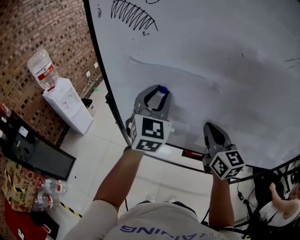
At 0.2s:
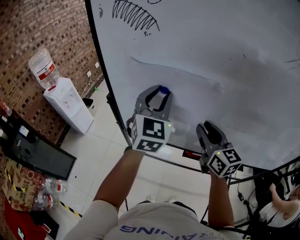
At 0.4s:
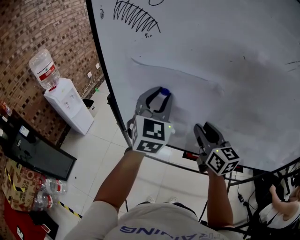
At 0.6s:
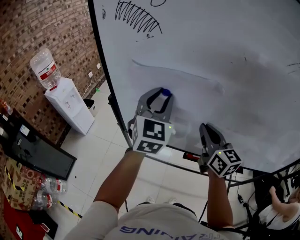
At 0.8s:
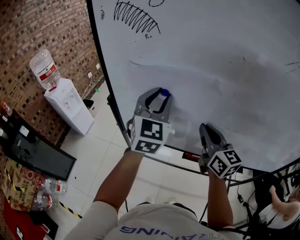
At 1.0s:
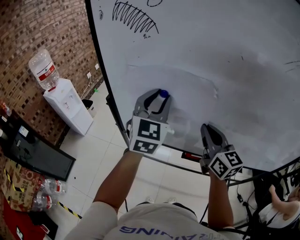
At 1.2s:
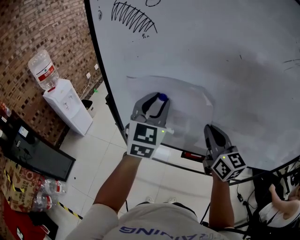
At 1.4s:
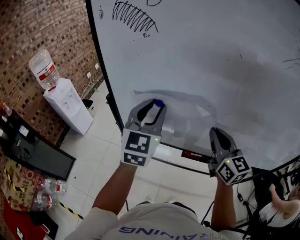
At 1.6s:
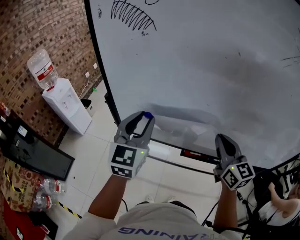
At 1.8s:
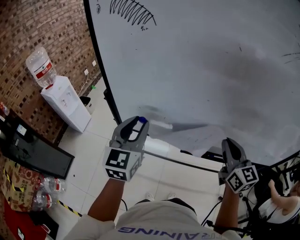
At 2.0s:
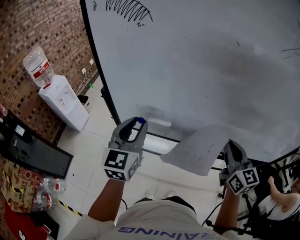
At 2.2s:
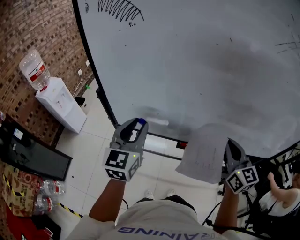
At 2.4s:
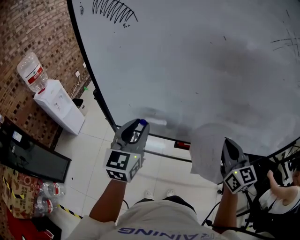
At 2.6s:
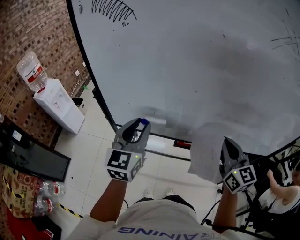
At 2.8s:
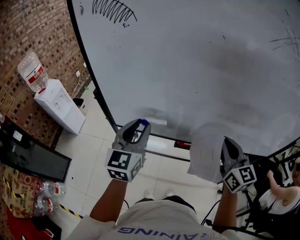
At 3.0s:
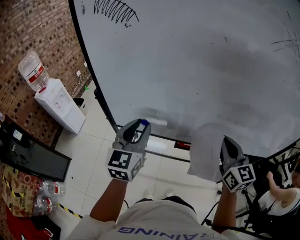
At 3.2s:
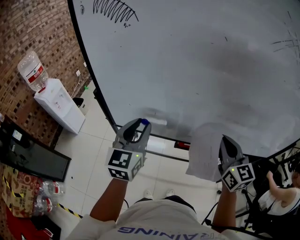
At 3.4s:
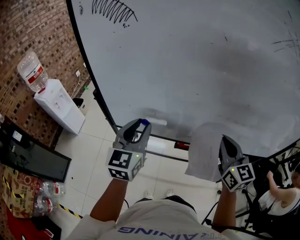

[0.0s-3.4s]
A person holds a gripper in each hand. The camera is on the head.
0.0s to 1.6s: The left gripper heads backward, covering some 10 cm, while the right gripper moves some 5 cm, and opens, then closes once more.
1.6s to 3.4s: The right gripper shifts by roughly 5 cm; the left gripper is displaced downward by roughly 5 cm.

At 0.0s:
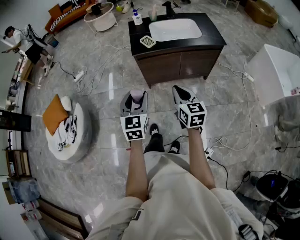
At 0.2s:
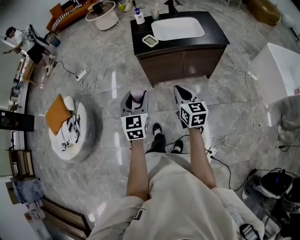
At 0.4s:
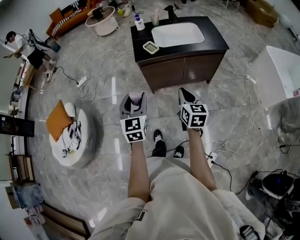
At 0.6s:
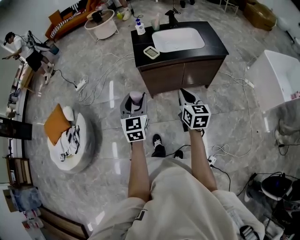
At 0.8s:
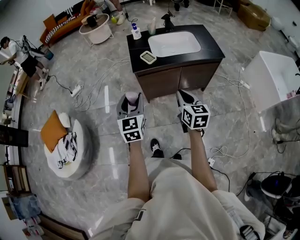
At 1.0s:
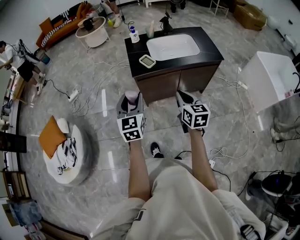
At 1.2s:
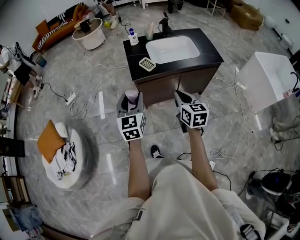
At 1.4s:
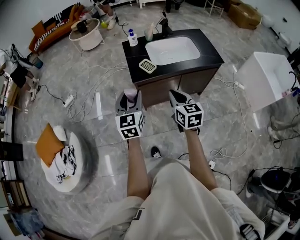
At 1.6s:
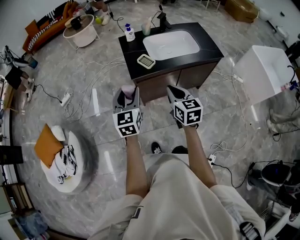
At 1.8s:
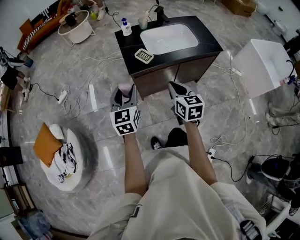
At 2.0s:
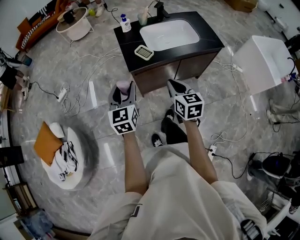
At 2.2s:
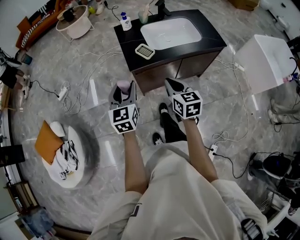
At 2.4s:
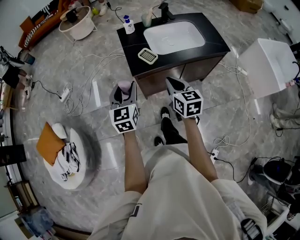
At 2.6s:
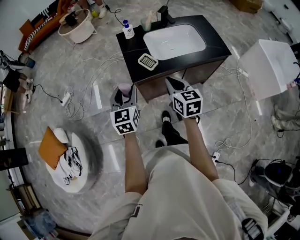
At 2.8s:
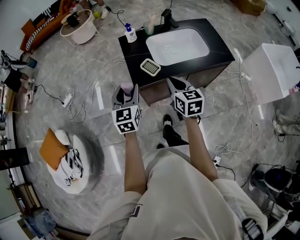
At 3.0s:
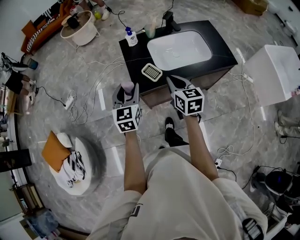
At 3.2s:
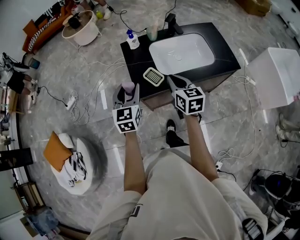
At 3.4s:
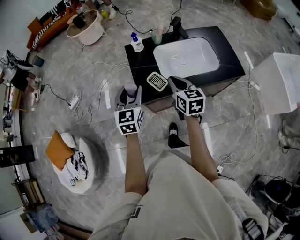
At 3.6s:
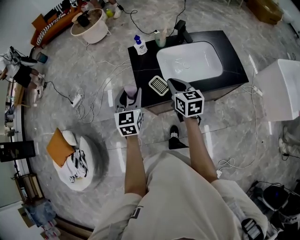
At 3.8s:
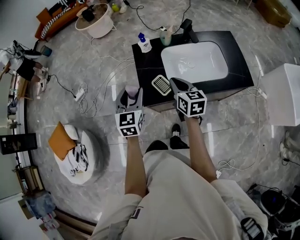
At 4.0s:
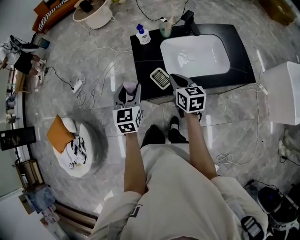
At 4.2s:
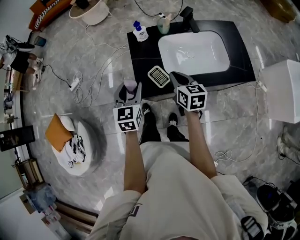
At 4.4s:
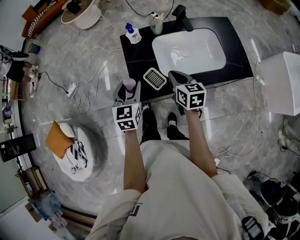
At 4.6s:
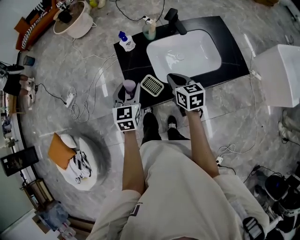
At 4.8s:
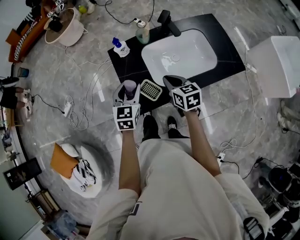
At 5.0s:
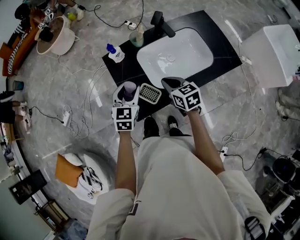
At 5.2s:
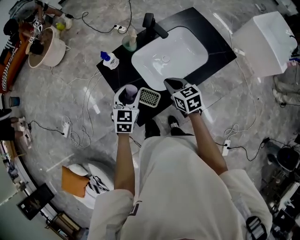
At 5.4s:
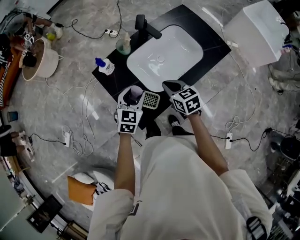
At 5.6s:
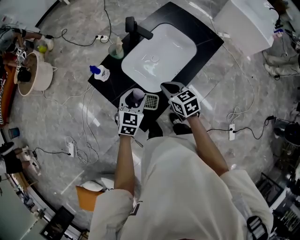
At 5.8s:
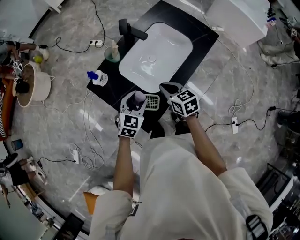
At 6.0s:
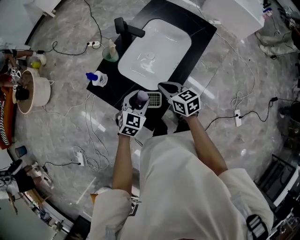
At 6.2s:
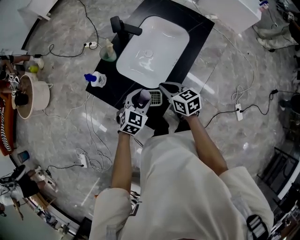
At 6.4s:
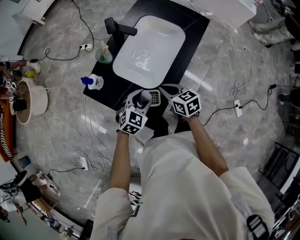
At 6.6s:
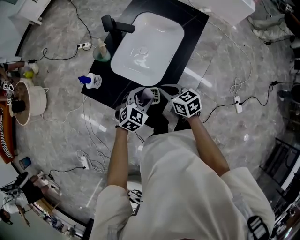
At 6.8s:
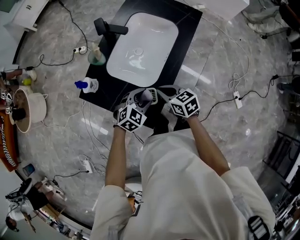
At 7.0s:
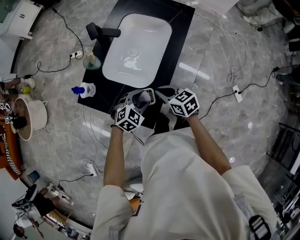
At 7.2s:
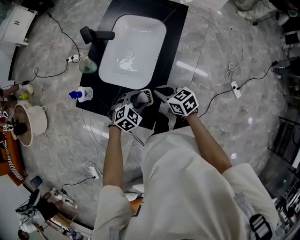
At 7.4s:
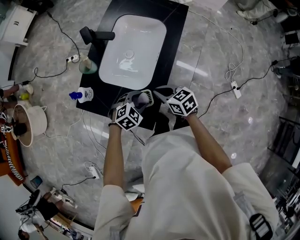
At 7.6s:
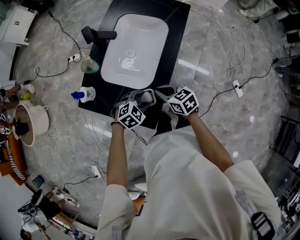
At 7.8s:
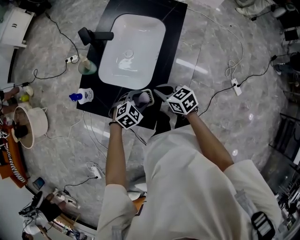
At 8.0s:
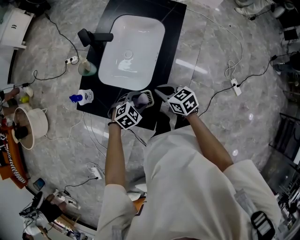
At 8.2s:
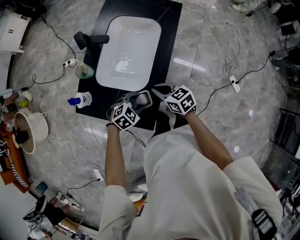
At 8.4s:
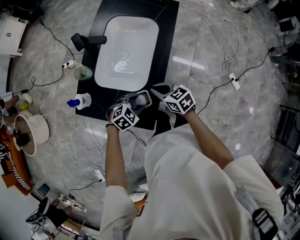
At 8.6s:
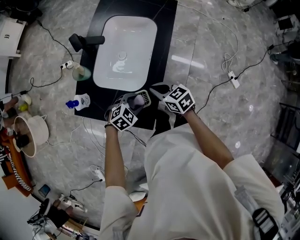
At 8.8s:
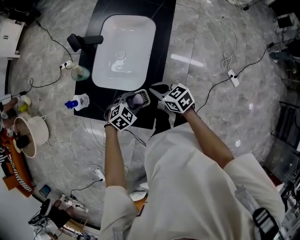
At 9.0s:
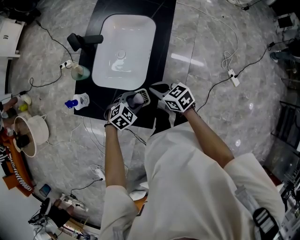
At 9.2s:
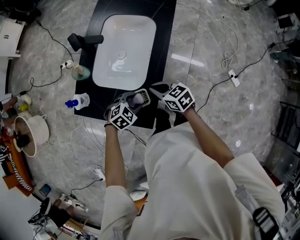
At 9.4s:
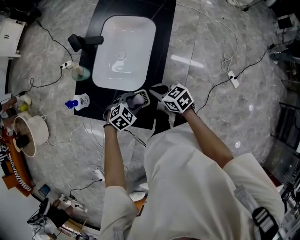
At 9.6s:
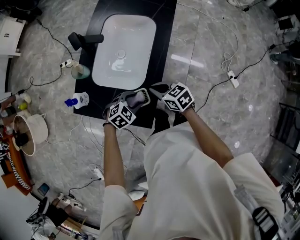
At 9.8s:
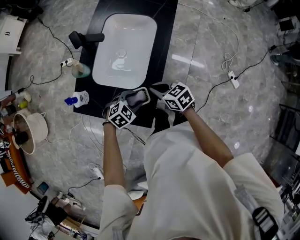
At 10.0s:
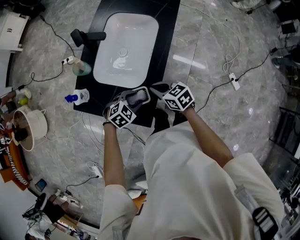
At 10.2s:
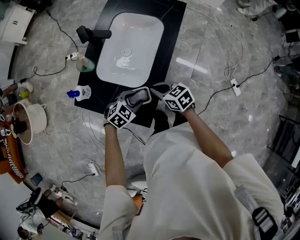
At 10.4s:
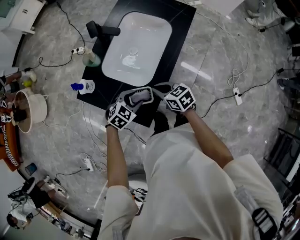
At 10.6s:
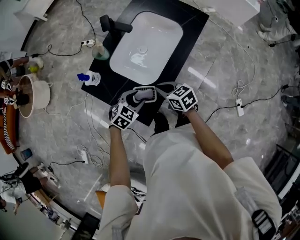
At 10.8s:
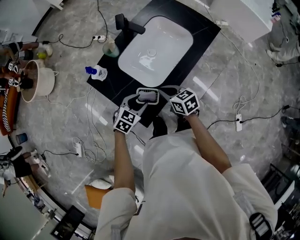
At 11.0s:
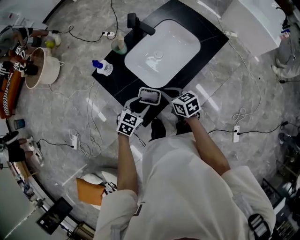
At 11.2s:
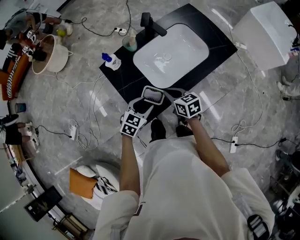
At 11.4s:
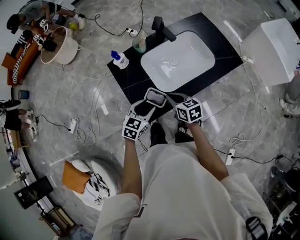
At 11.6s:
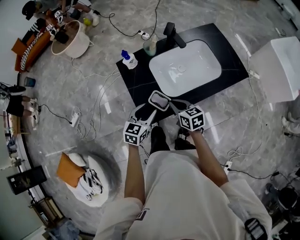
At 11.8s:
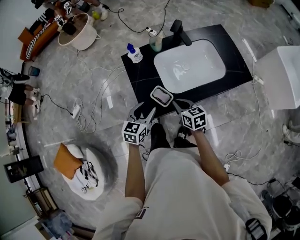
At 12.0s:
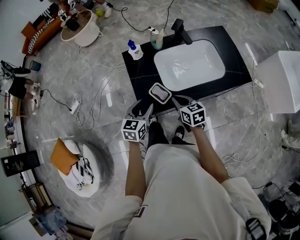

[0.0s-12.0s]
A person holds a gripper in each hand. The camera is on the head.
0.0s to 1.6s: The two grippers go approximately 20 cm forward.
1.6s to 3.0s: Both grippers move forward, approximately 15 cm.
3.0s to 4.4s: The left gripper moves forward, about 10 cm; the right gripper moves forward and downward, approximately 15 cm.
4.4s to 6.0s: The left gripper moves downward, about 10 cm, and turns by approximately 70 degrees. Meanwhile the right gripper moves downward, some 5 cm, and turns by approximately 30 degrees.
6.0s to 7.6s: The right gripper shifts by approximately 5 cm. The left gripper goes some 10 cm downward, and rotates about 40 degrees.
7.6s to 10.4s: The grippers move only a little.
10.4s to 12.0s: The left gripper shifts some 5 cm upward, and rotates some 90 degrees, while the right gripper changes its angle by some 30 degrees.

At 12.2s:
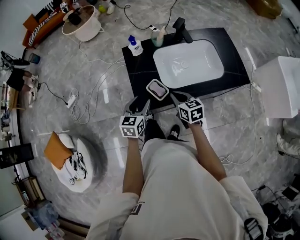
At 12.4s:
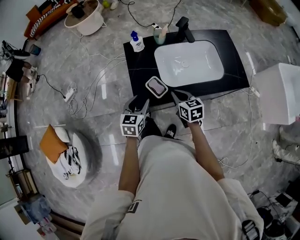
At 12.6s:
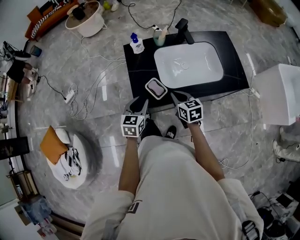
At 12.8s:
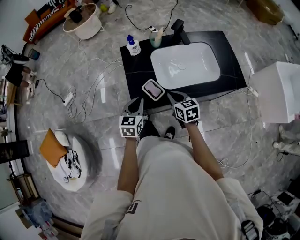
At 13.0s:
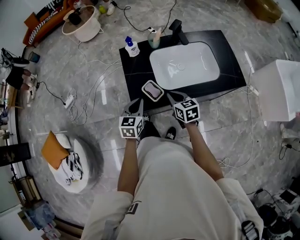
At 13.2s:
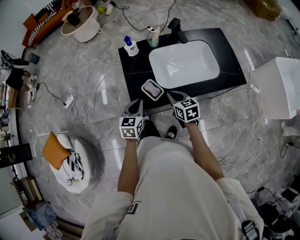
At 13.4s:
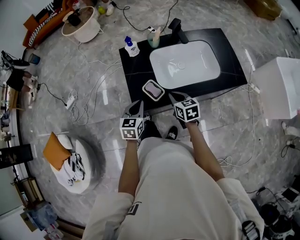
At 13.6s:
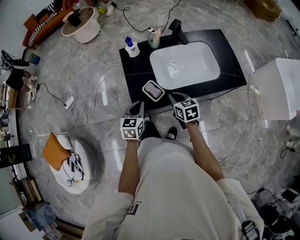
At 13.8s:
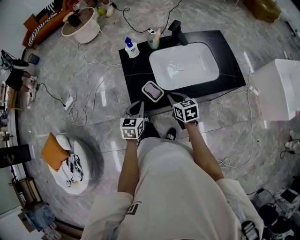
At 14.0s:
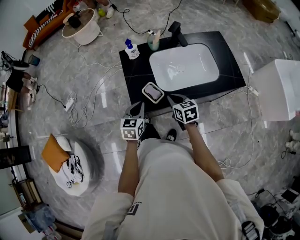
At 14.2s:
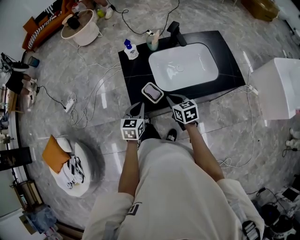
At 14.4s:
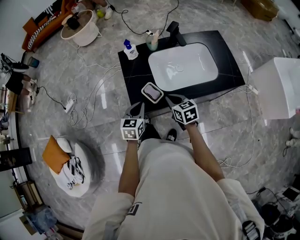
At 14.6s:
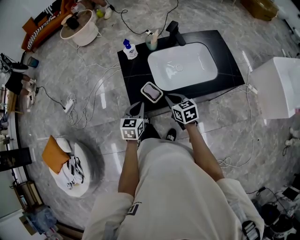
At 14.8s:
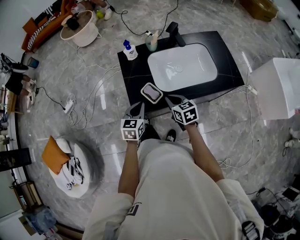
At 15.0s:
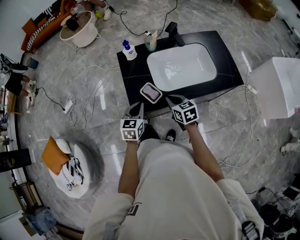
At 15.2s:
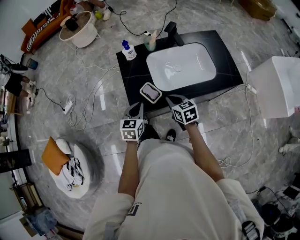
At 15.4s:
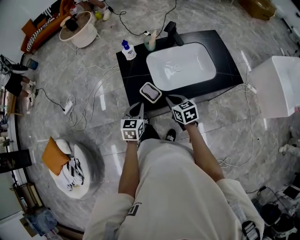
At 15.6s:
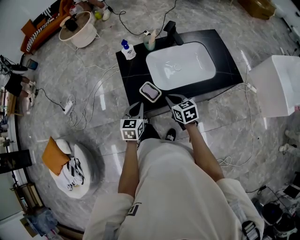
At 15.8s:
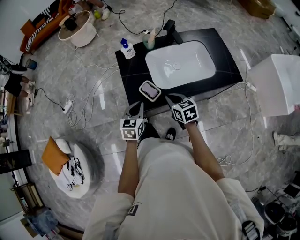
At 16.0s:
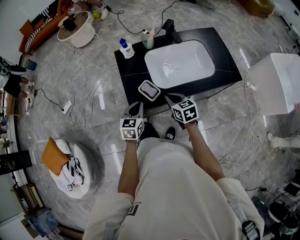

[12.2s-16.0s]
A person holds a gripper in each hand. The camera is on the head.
12.2s to 13.4s: The left gripper closes up.
13.4s to 14.8s: The grippers make only small movements.
14.8s to 16.0s: Both grippers stay about where they are.

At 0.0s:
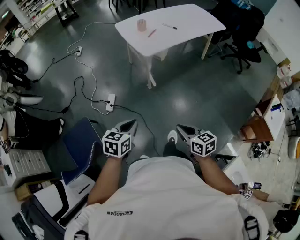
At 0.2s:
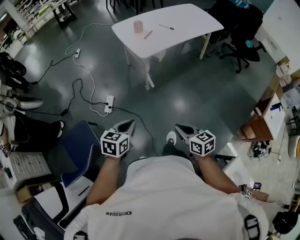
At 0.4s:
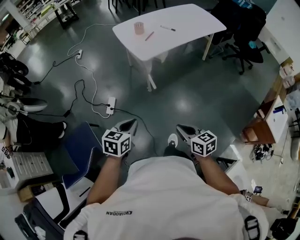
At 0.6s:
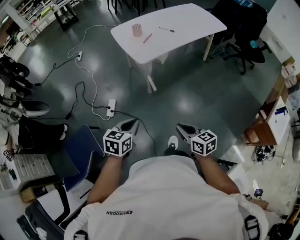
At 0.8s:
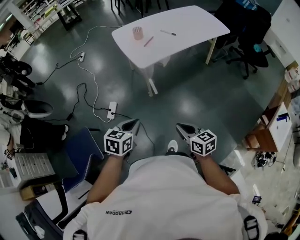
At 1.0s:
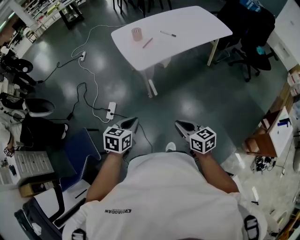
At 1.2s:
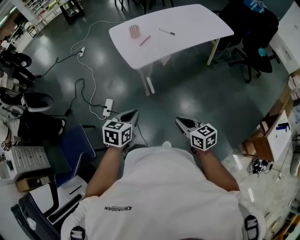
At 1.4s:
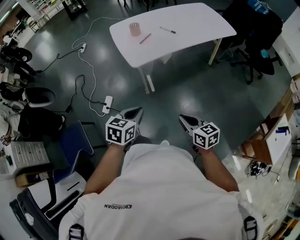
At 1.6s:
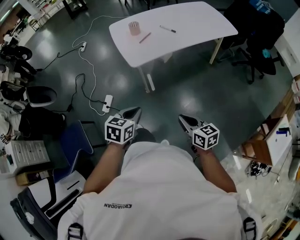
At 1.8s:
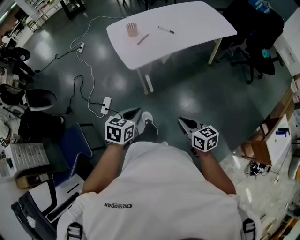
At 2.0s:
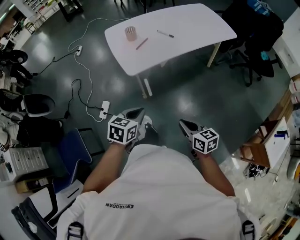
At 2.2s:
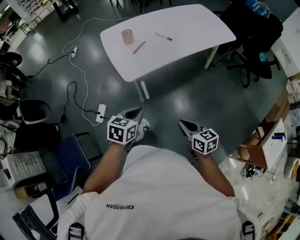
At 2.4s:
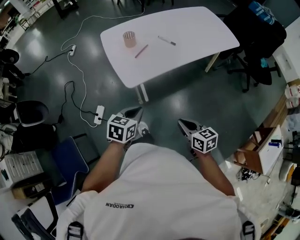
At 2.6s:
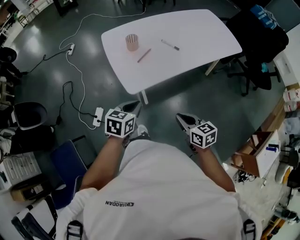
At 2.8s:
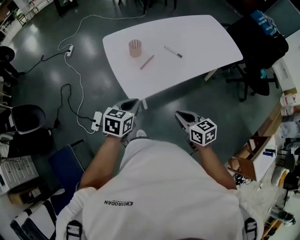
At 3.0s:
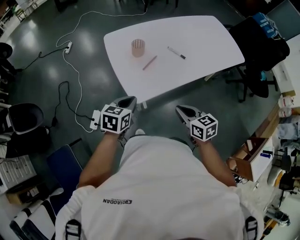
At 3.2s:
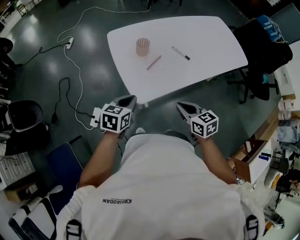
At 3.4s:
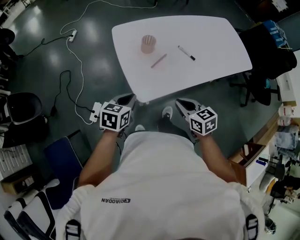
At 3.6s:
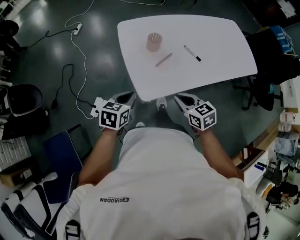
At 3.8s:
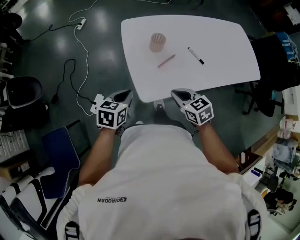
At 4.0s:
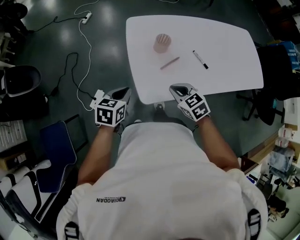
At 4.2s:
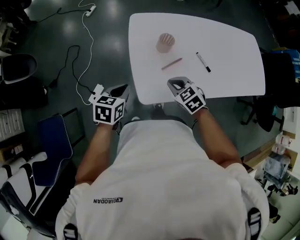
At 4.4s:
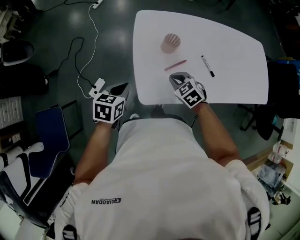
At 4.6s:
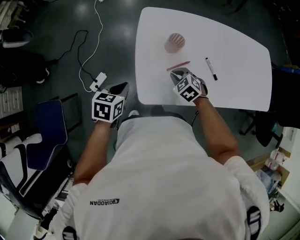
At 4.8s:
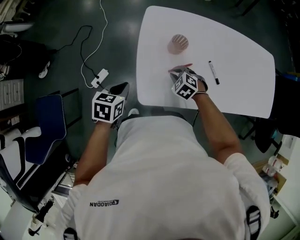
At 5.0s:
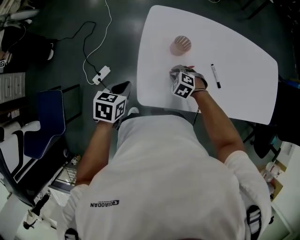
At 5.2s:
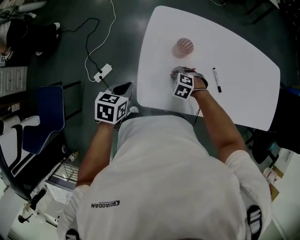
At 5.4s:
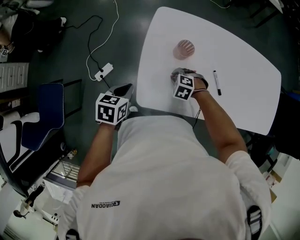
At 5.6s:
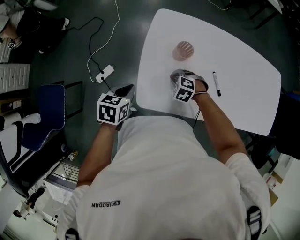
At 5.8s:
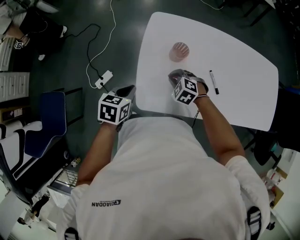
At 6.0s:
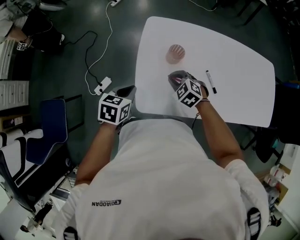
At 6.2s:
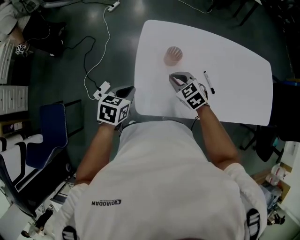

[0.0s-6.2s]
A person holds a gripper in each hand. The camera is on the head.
0.0s to 1.6s: The left gripper shifts approximately 30 cm to the right and forward; the right gripper moves forward and to the right, about 30 cm.
1.6s to 3.2s: The grippers both shift forward by approximately 35 cm.
3.2s to 4.6s: The right gripper is displaced forward and downward by some 30 cm, and twists roughly 50 degrees counterclockwise, seen from behind. Meanwhile the left gripper travels forward, downward and to the left by about 10 cm, and swivels about 30 degrees.
4.6s to 6.2s: The right gripper travels upward by approximately 5 cm.
